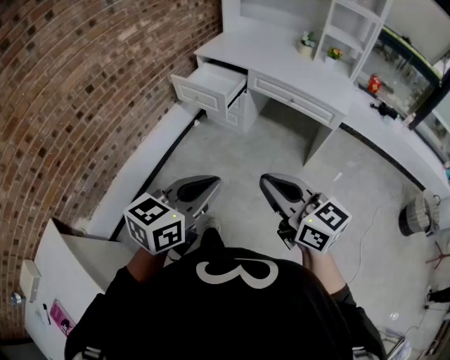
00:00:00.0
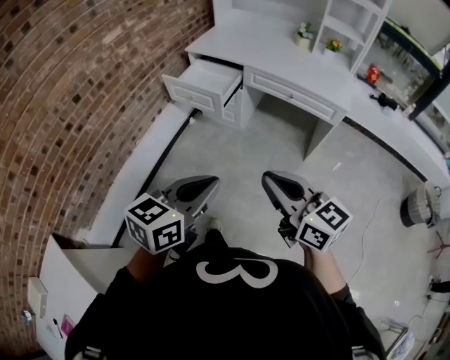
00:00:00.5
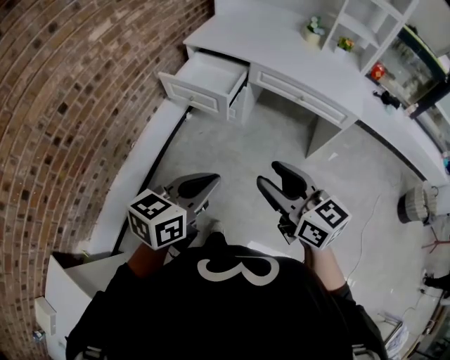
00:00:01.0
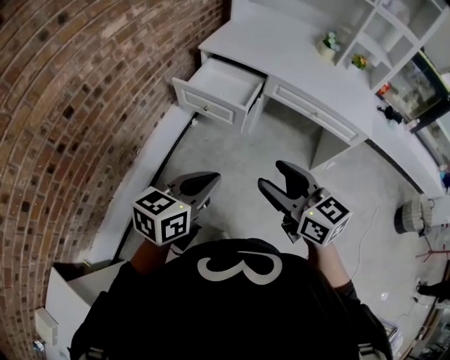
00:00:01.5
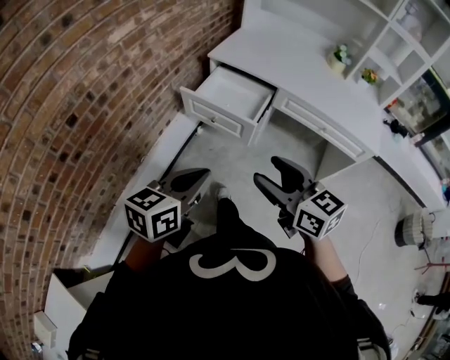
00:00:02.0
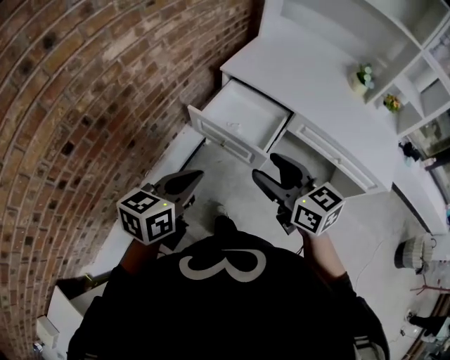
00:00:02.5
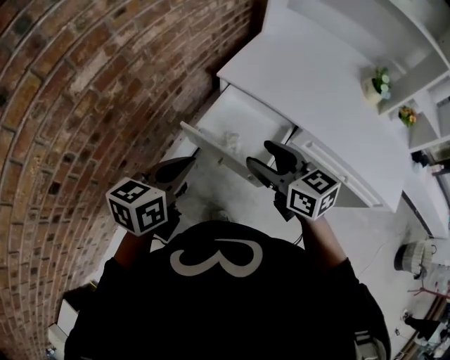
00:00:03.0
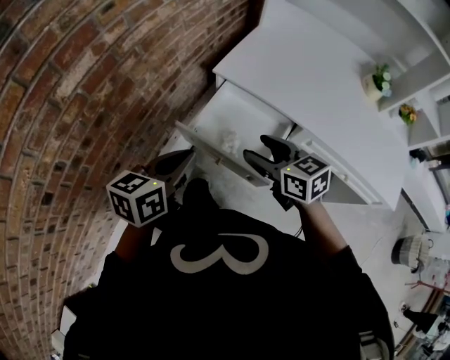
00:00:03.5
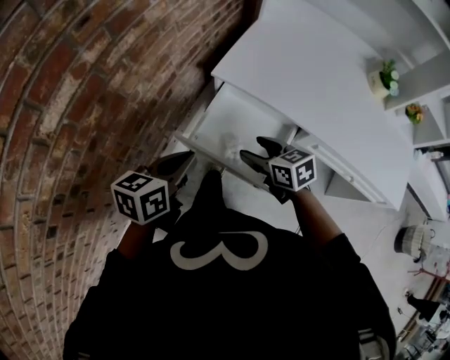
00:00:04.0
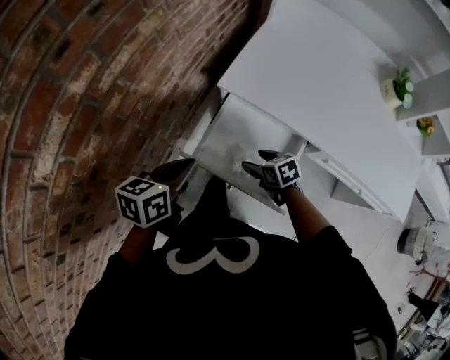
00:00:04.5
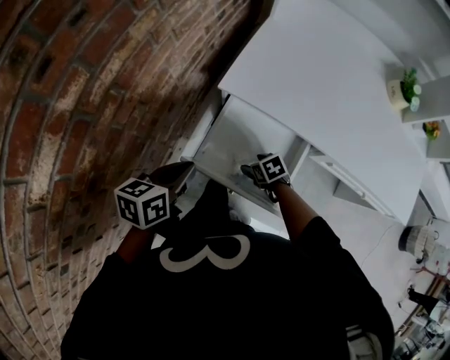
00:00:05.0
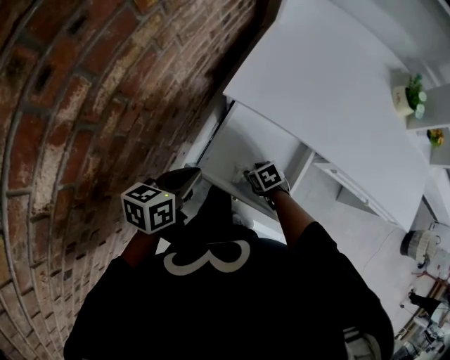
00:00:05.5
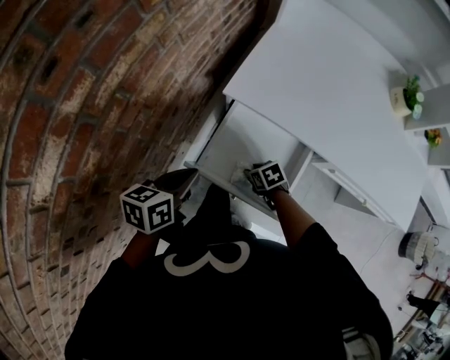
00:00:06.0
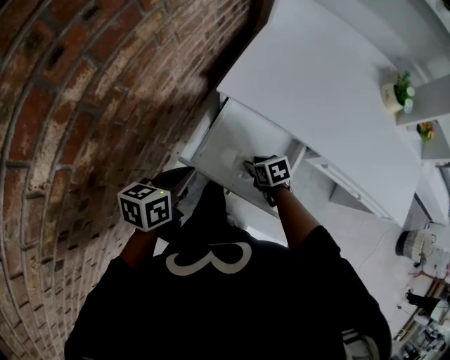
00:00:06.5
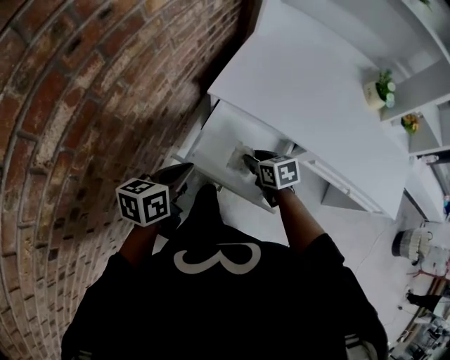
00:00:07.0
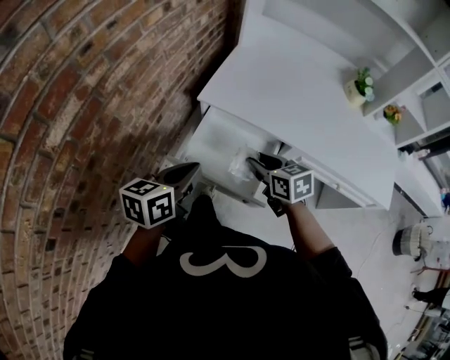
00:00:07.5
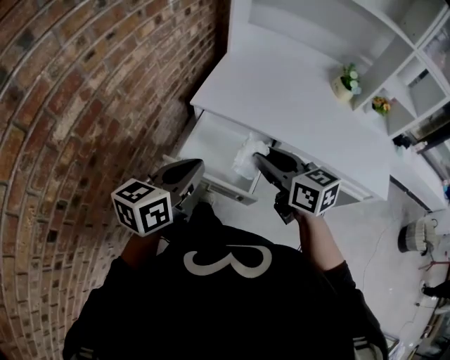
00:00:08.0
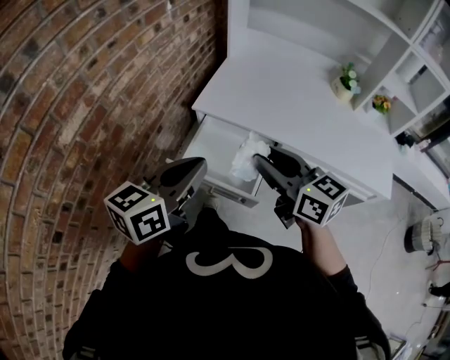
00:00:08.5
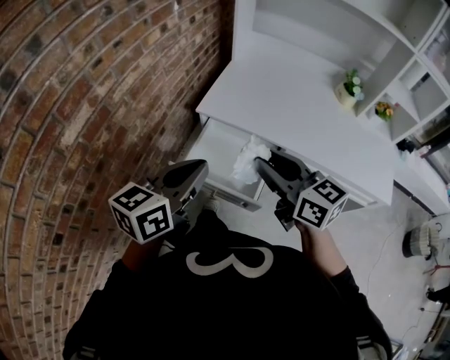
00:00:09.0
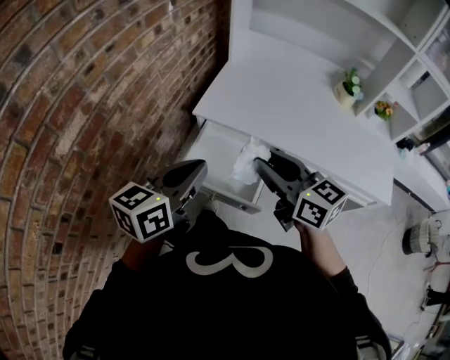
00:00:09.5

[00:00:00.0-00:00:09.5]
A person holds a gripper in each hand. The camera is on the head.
00:00:00.0 to 00:00:02.0: The grippers both shift forward and to the left by some 35 cm. The right gripper opens up.
00:00:02.0 to 00:00:04.0: The right gripper heads forward and downward, covering approximately 40 cm, and changes its angle by some 20 degrees. Meanwhile the left gripper is displaced forward by roughly 40 cm.
00:00:04.0 to 00:00:05.5: The right gripper heads downward, covering roughly 20 cm, and tilts its fingers roughly 30 degrees downward; the left gripper moves forward and downward, about 10 cm.
00:00:05.5 to 00:00:07.5: The left gripper travels upward, backward and to the right by approximately 15 cm. Meanwhile the right gripper is displaced upward by some 25 cm, and tilts its fingers roughly 30 degrees upward.
00:00:07.5 to 00:00:09.5: The right gripper shifts approximately 20 cm upward, and swivels roughly 30 degrees. Meanwhile the left gripper moves upward, approximately 10 cm.

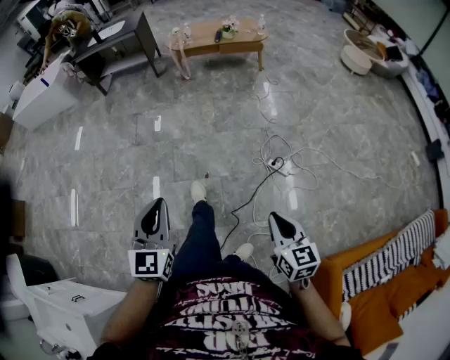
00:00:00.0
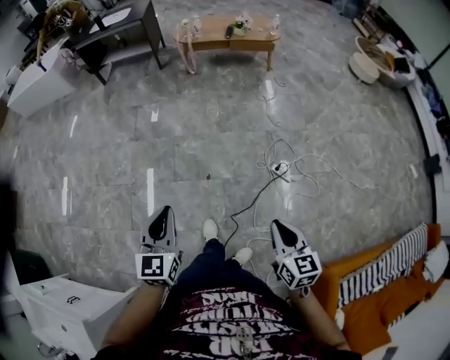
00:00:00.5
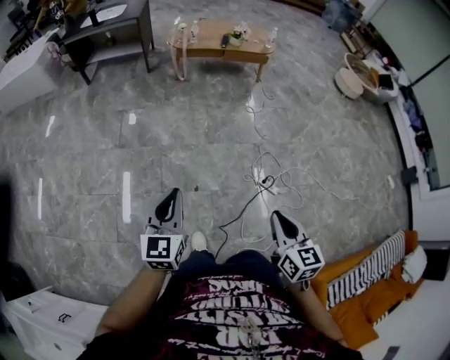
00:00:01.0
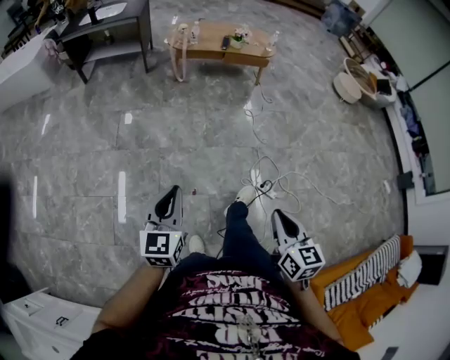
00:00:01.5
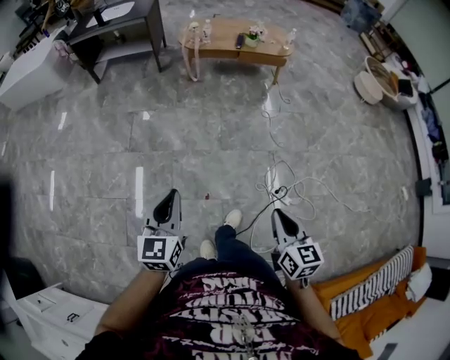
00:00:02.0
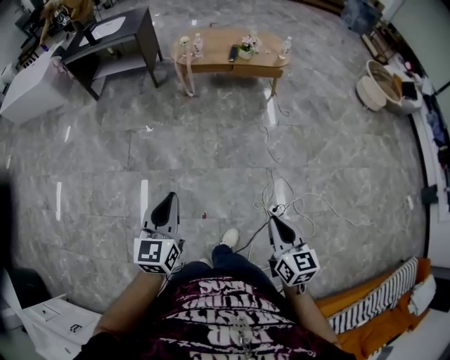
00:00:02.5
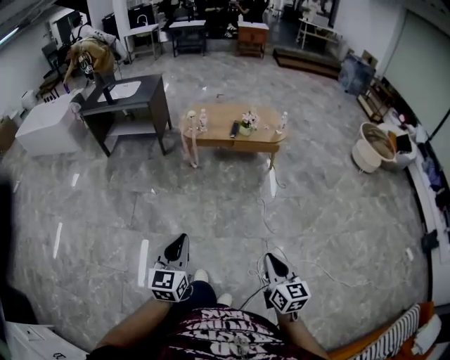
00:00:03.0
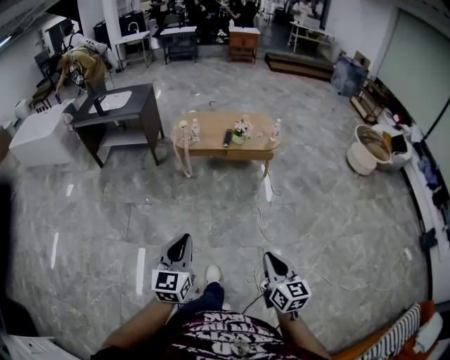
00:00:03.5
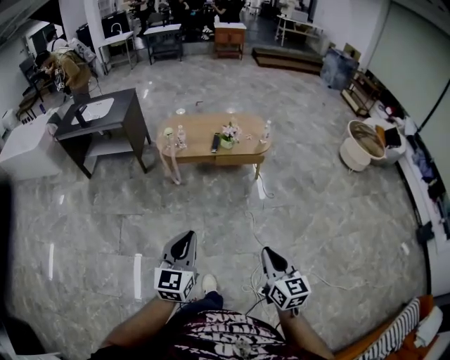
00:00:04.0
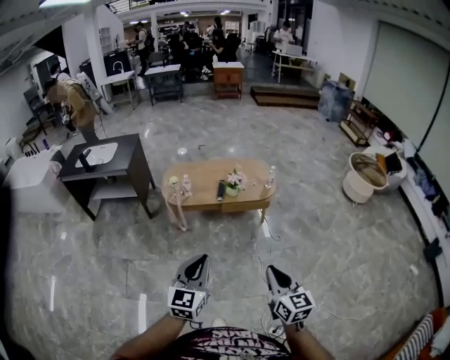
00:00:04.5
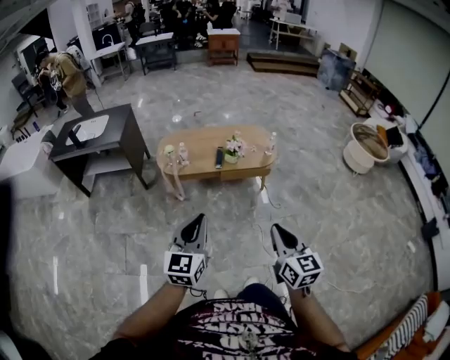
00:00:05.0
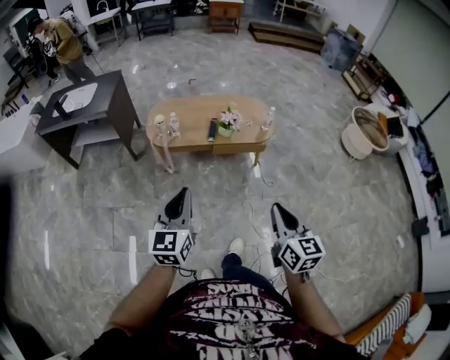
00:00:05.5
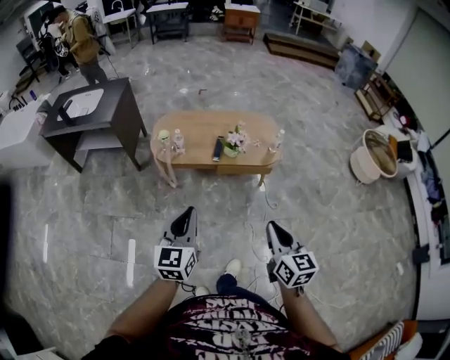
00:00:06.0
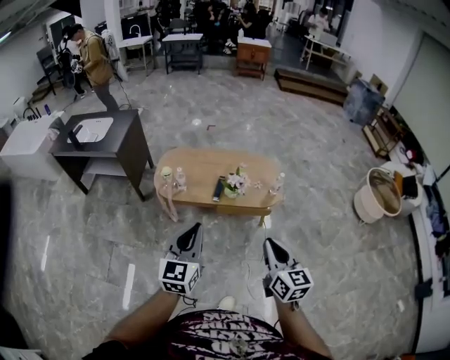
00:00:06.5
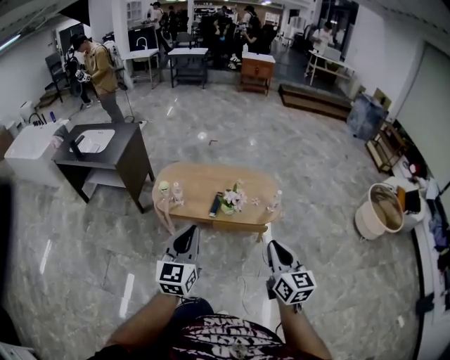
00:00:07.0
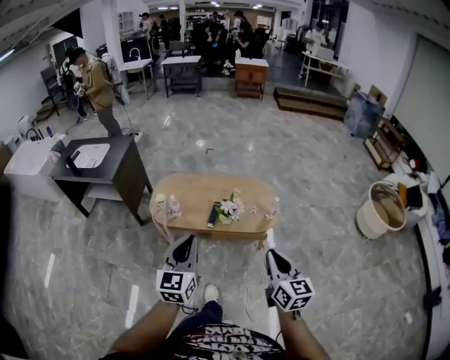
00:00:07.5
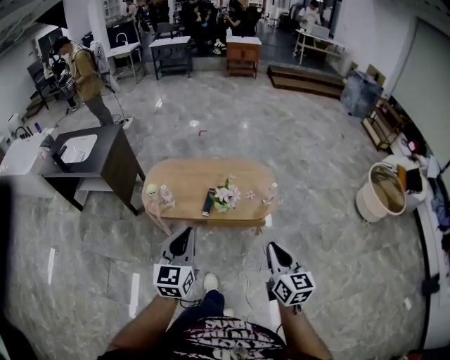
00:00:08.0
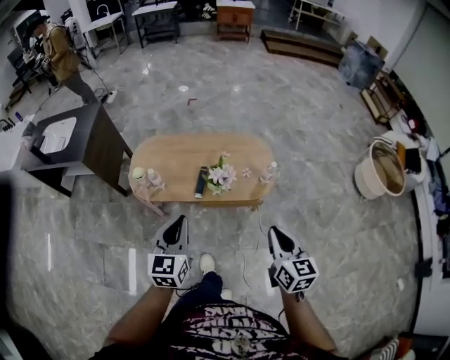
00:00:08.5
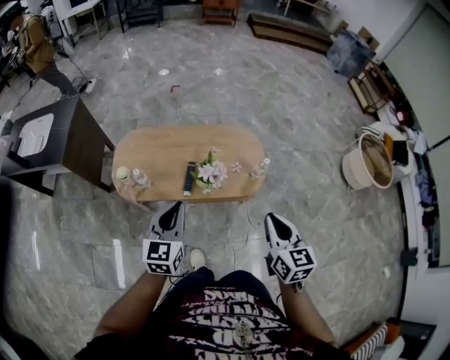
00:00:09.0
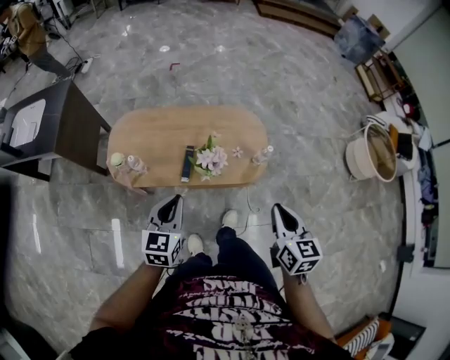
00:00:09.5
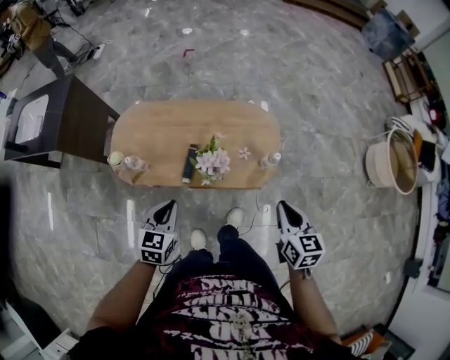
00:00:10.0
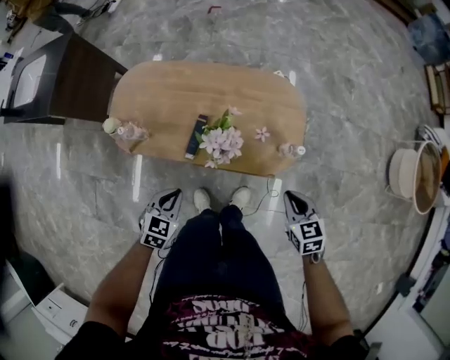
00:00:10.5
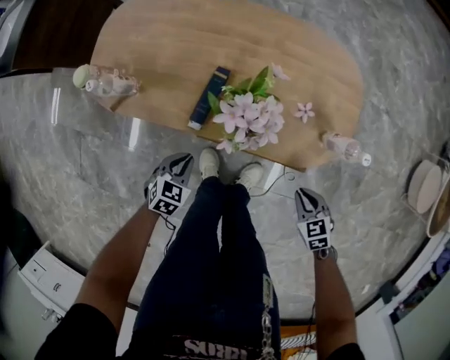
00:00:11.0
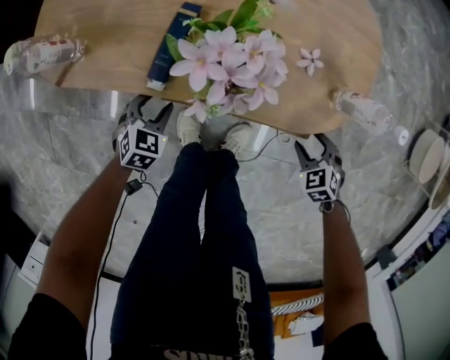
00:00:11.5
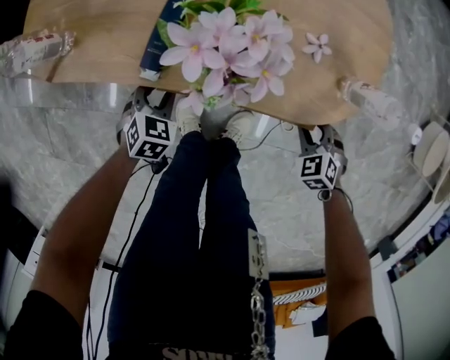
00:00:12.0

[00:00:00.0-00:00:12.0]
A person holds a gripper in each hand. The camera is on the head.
00:00:00.0 to 00:00:02.0: The two grippers go approximately 30 cm forward.
00:00:02.0 to 00:00:04.0: Both grippers move forward and to the right, roughly 35 cm.
00:00:04.0 to 00:00:06.0: Both grippers travel together forward, approximately 30 cm.
00:00:06.0 to 00:00:08.0: Both grippers travel together forward and to the right, approximately 20 cm.
00:00:08.0 to 00:00:10.0: The right gripper is displaced forward and downward by roughly 30 cm; the left gripper goes about 30 cm downward and forward, and changes its angle by about 30 degrees.
00:00:10.0 to 00:00:12.0: Both grippers travel together downward, about 50 cm. The left gripper rotates approximately 30 degrees, and opens its fingers, while the right gripper rotates around the line of its fingers by approximately 60 degrees, counterclockwise from behind, and opens up.

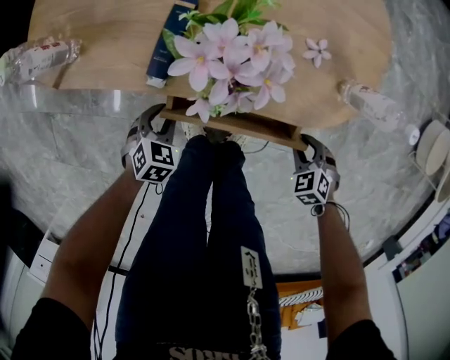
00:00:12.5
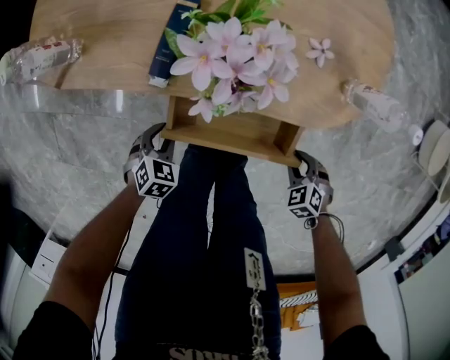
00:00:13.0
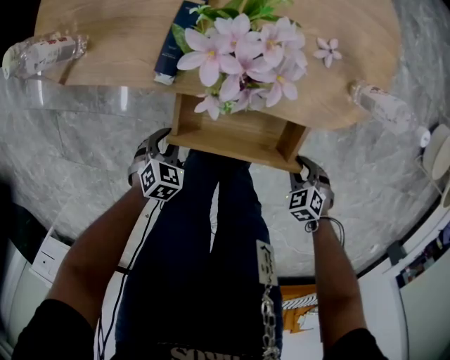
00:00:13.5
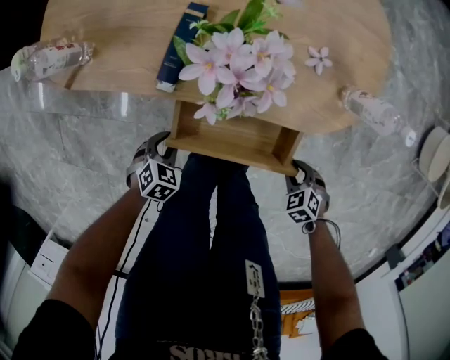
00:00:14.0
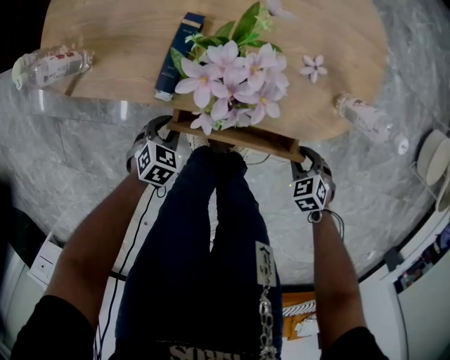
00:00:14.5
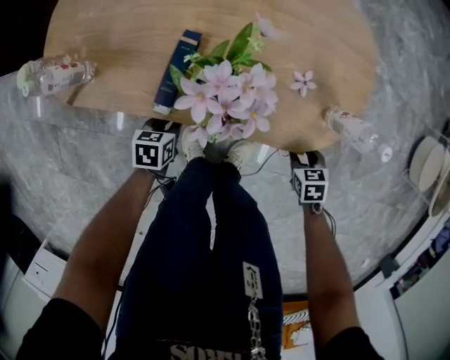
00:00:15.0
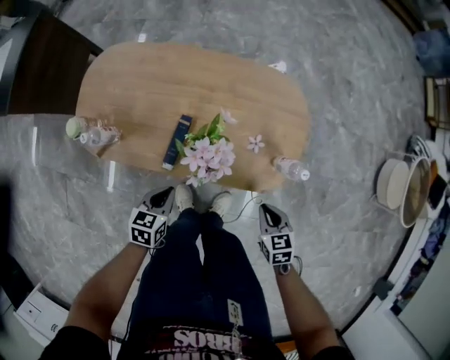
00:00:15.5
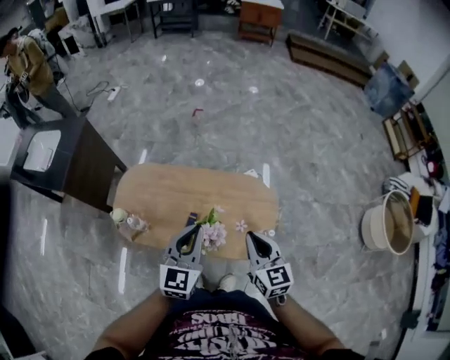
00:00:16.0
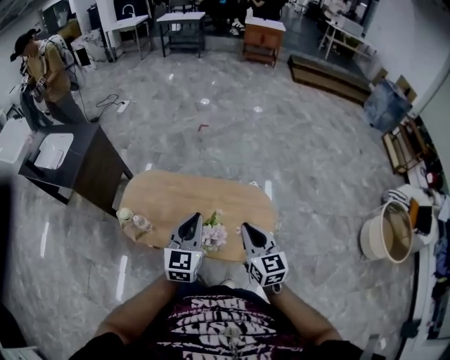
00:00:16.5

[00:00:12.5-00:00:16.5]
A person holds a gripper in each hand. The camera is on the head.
00:00:14.5 to 00:00:16.5: Both grippers travel together upward, roughly 60 cm. The right gripper angles its fingers upward, by about 60 degrees, and closes. The left gripper points its fingers approximately 60 degrees further upward, and closes up.

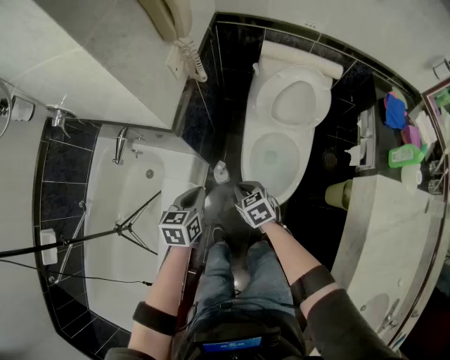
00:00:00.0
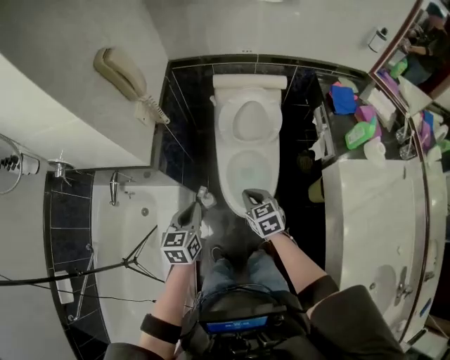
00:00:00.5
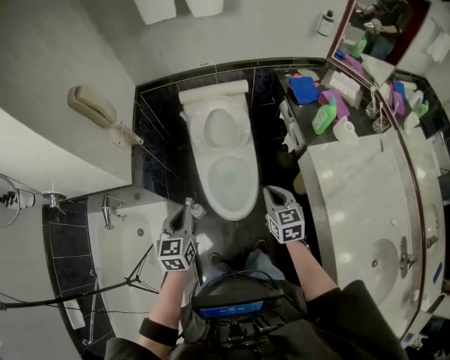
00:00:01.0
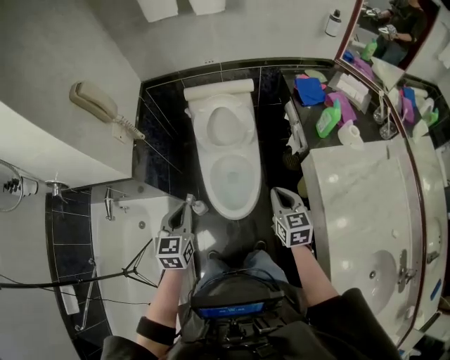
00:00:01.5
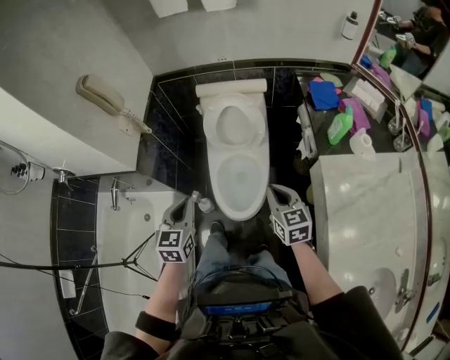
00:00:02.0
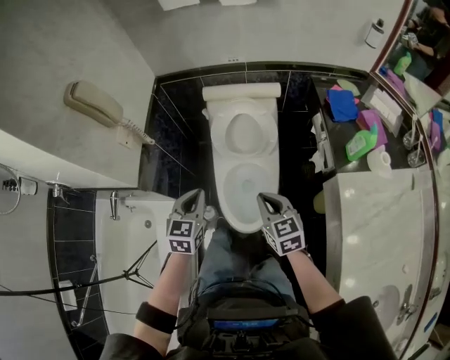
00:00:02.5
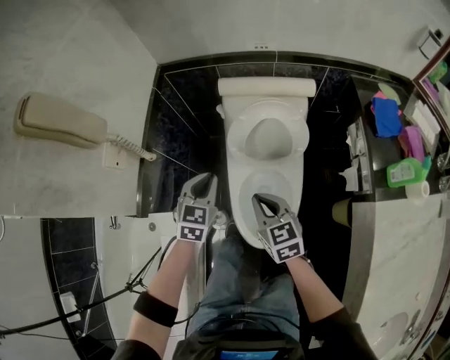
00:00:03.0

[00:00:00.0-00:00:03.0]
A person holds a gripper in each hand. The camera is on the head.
00:00:00.0 to 00:00:01.5: The left gripper travels upward and to the right by about 25 cm, and changes its angle by approximately 30 degrees. The right gripper heads to the right and upward, covering roughly 40 cm, and rotates about 40 degrees.
00:00:01.5 to 00:00:03.0: The right gripper is displaced forward, to the left and downward by about 35 cm, and changes its angle by roughly 20 degrees, while the left gripper goes roughly 35 cm forward and downward.
